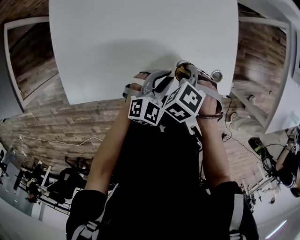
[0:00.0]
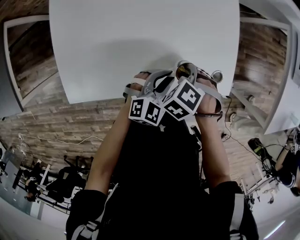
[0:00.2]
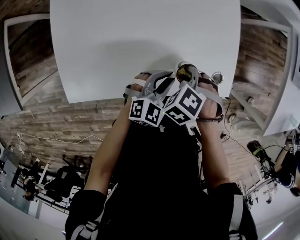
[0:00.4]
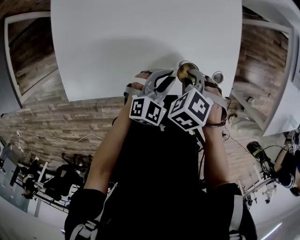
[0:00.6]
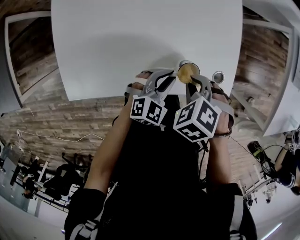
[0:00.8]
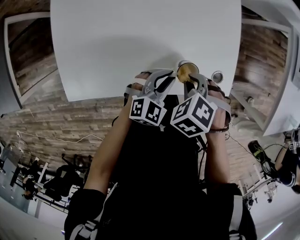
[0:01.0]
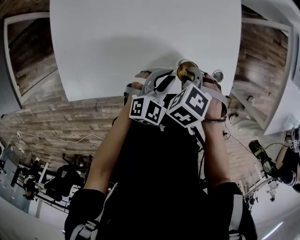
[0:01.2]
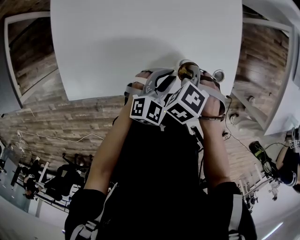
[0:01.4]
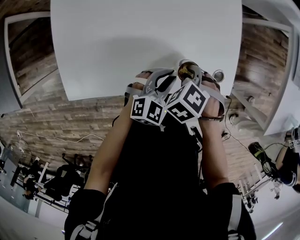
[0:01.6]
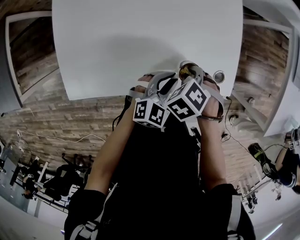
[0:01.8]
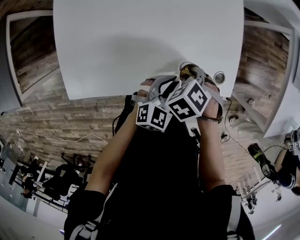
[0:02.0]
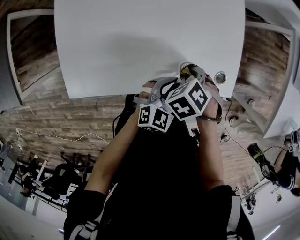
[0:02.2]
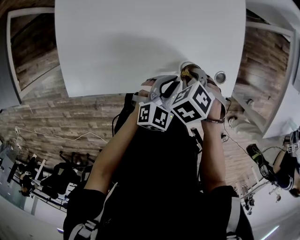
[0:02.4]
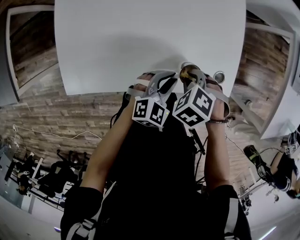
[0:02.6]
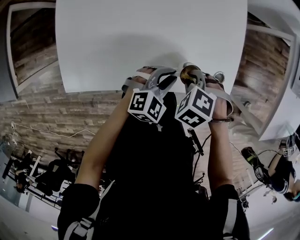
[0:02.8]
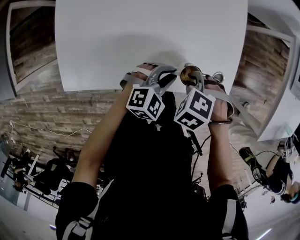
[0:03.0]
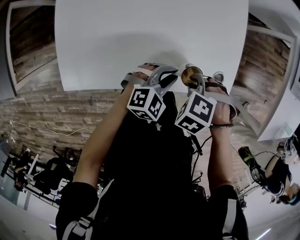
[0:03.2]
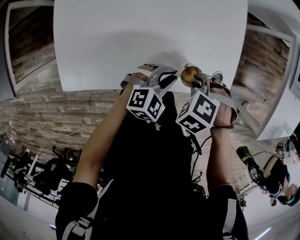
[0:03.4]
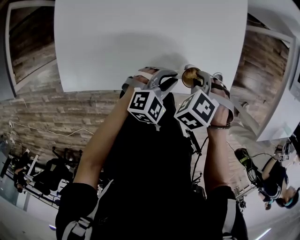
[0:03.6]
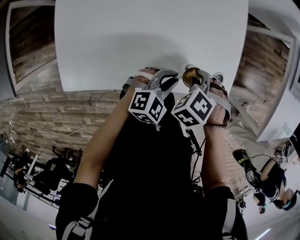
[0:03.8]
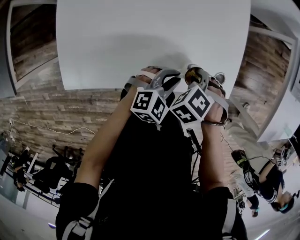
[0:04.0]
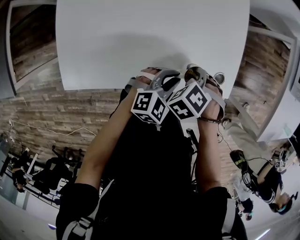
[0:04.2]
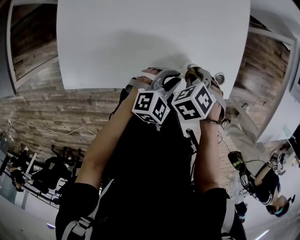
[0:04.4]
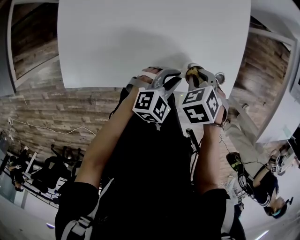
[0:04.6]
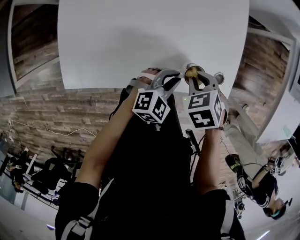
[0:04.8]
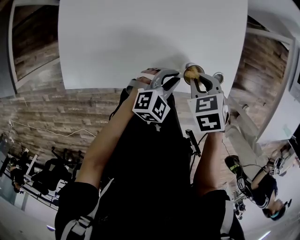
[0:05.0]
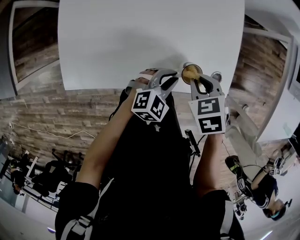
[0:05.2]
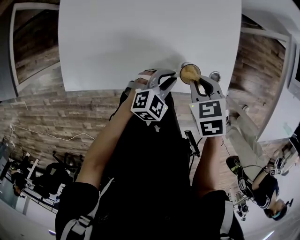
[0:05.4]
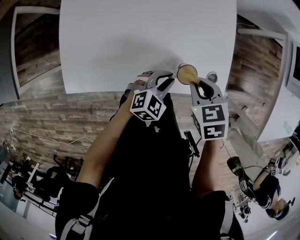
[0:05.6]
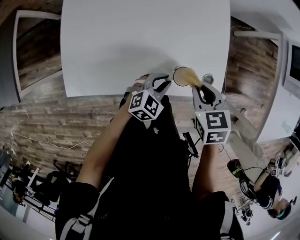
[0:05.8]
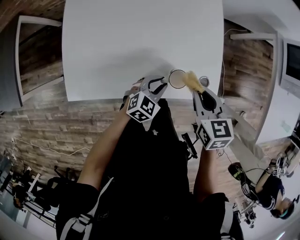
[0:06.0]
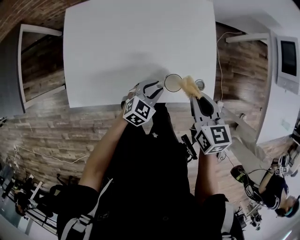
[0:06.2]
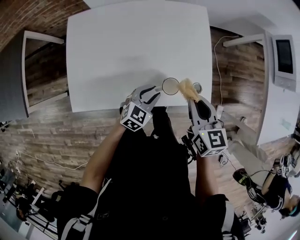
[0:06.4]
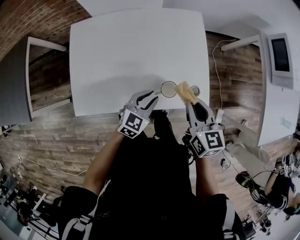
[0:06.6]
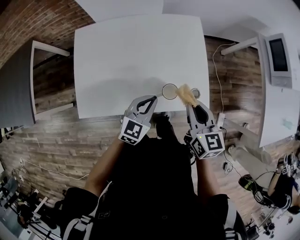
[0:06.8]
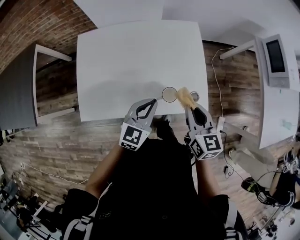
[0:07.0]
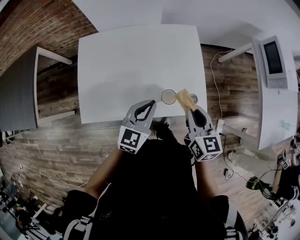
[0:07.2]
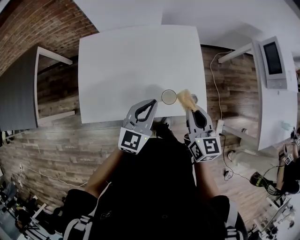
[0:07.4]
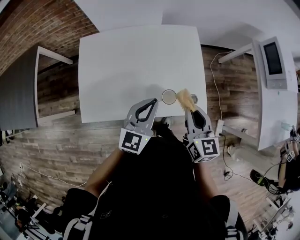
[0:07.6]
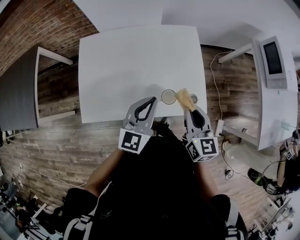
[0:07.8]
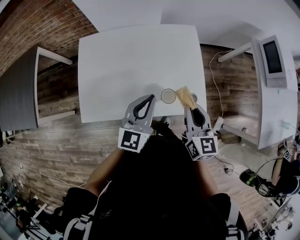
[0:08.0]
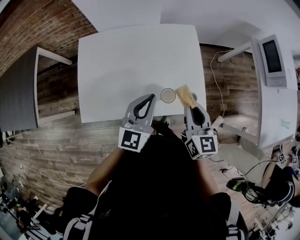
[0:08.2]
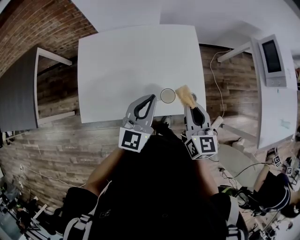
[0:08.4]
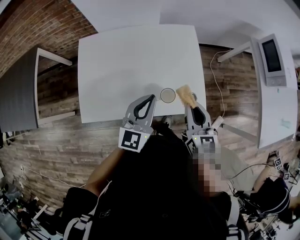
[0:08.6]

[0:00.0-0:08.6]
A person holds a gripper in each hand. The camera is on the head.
0:00.0 to 0:02.8: There are only small adjustments of the grippers.
0:02.8 to 0:04.4: The right gripper turns by some 20 degrees.
0:04.4 to 0:05.8: The right gripper travels upward by some 10 cm, and swivels approximately 40 degrees.
0:05.8 to 0:07.2: The left gripper travels upward by some 20 cm, and turns by some 30 degrees. Meanwhile the right gripper goes about 10 cm upward, and angles its fingers upward, by roughly 30 degrees.
0:07.2 to 0:08.6: The left gripper shifts by approximately 5 cm.

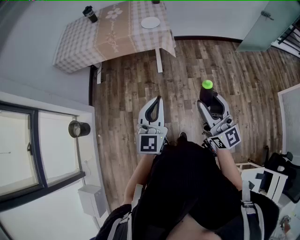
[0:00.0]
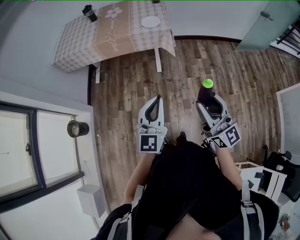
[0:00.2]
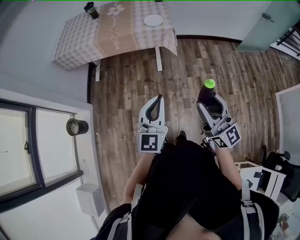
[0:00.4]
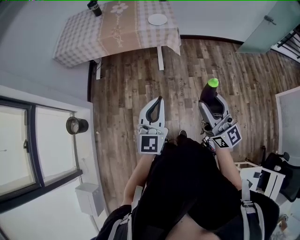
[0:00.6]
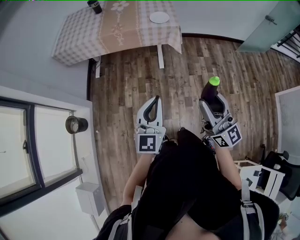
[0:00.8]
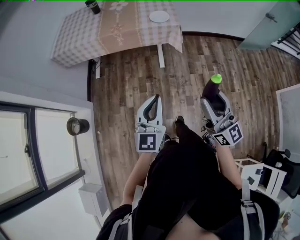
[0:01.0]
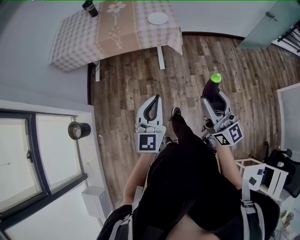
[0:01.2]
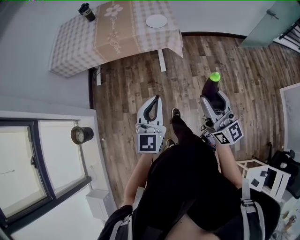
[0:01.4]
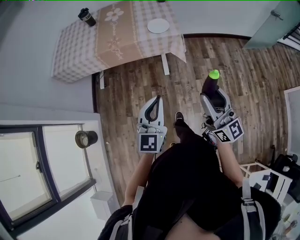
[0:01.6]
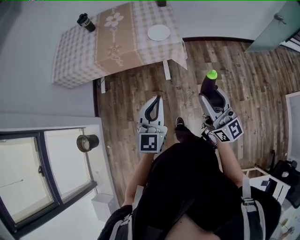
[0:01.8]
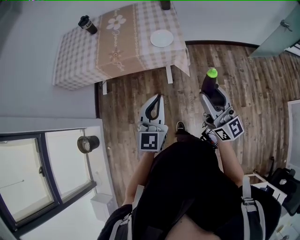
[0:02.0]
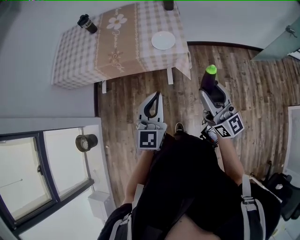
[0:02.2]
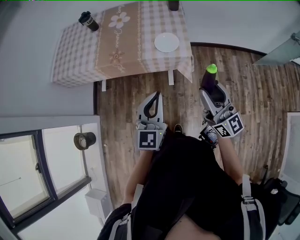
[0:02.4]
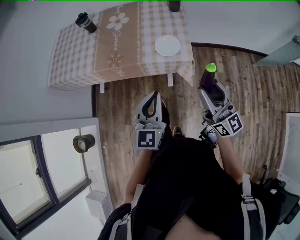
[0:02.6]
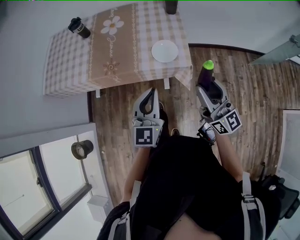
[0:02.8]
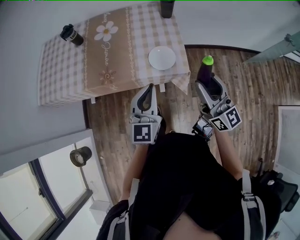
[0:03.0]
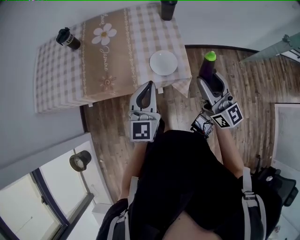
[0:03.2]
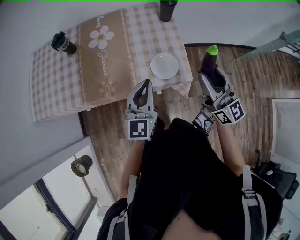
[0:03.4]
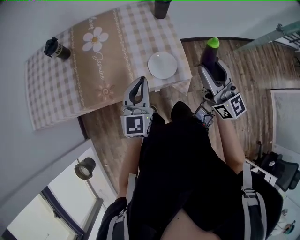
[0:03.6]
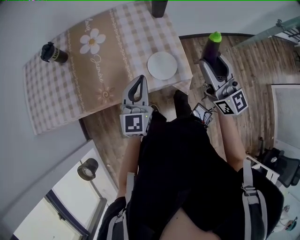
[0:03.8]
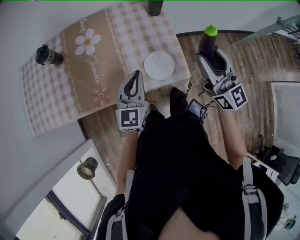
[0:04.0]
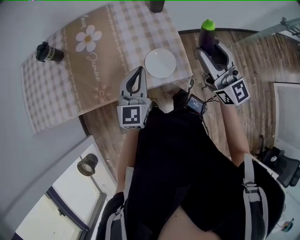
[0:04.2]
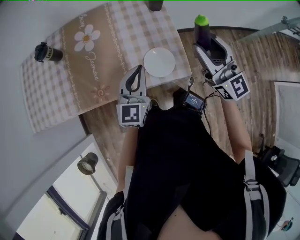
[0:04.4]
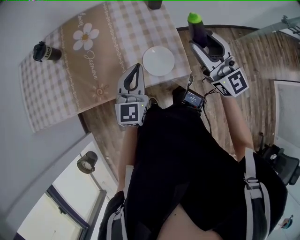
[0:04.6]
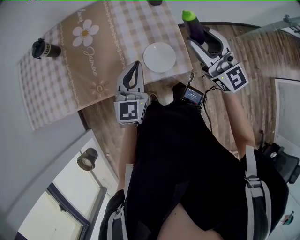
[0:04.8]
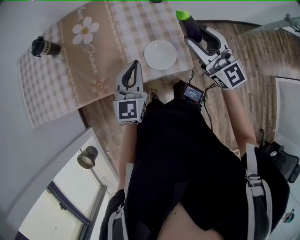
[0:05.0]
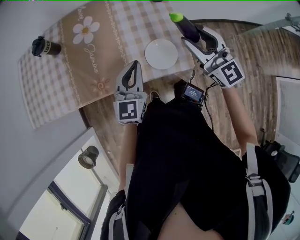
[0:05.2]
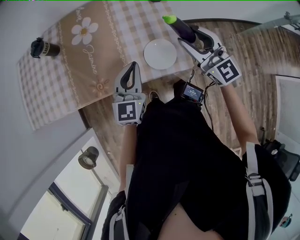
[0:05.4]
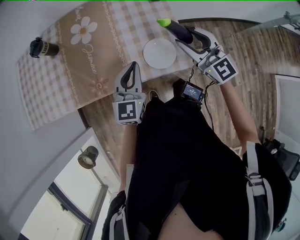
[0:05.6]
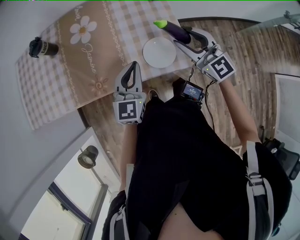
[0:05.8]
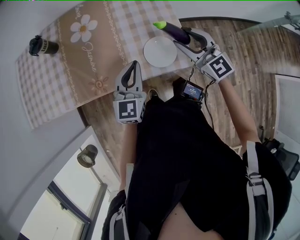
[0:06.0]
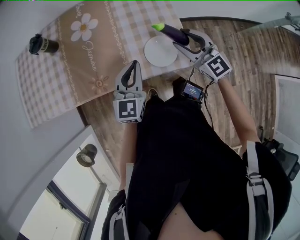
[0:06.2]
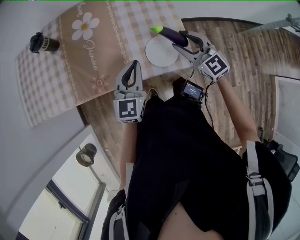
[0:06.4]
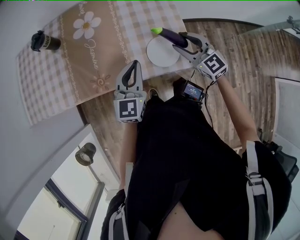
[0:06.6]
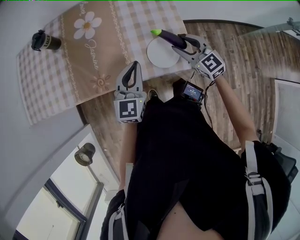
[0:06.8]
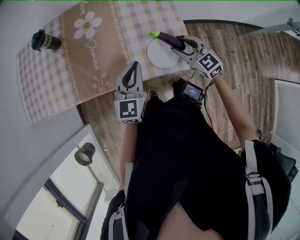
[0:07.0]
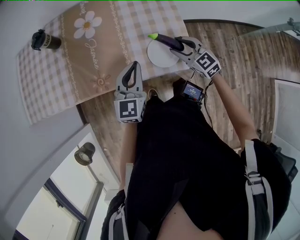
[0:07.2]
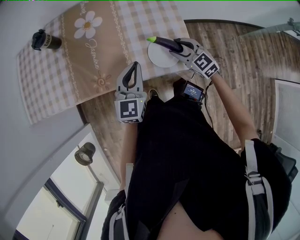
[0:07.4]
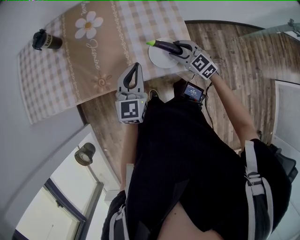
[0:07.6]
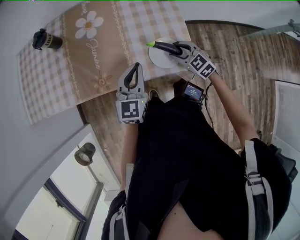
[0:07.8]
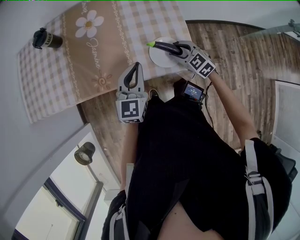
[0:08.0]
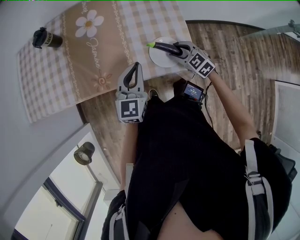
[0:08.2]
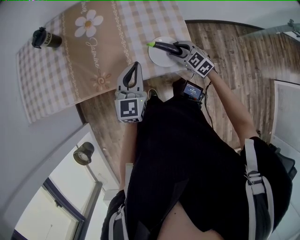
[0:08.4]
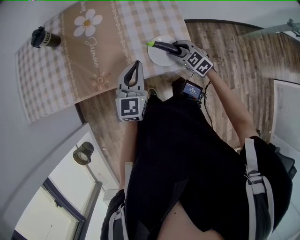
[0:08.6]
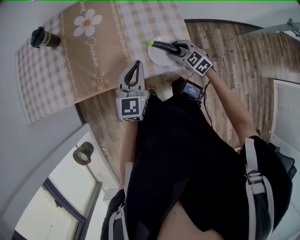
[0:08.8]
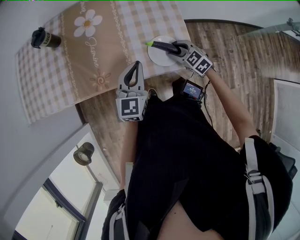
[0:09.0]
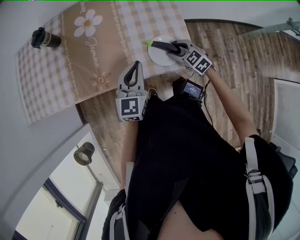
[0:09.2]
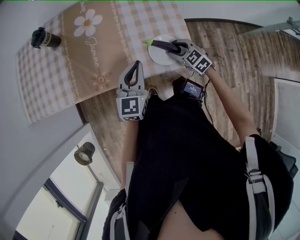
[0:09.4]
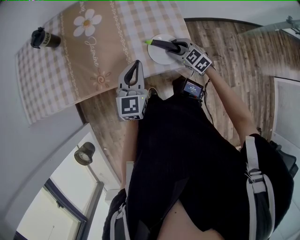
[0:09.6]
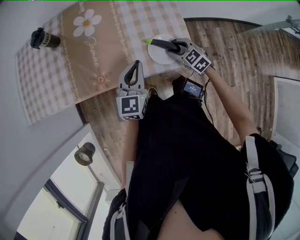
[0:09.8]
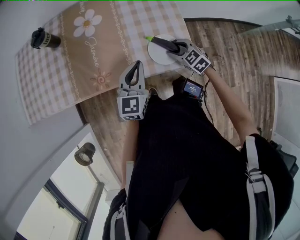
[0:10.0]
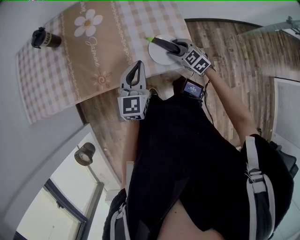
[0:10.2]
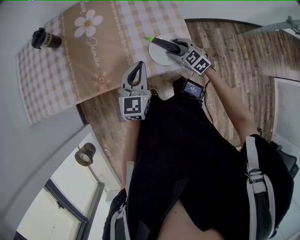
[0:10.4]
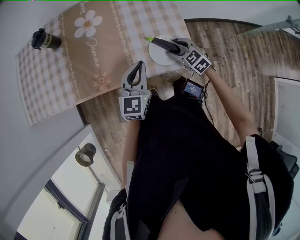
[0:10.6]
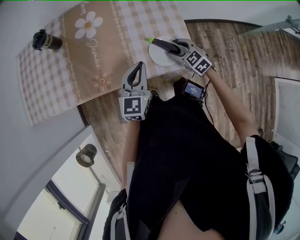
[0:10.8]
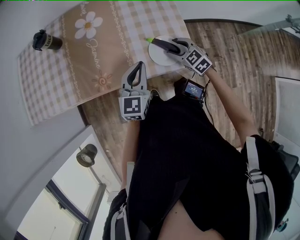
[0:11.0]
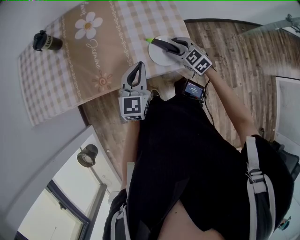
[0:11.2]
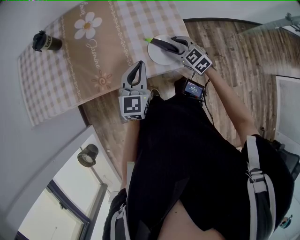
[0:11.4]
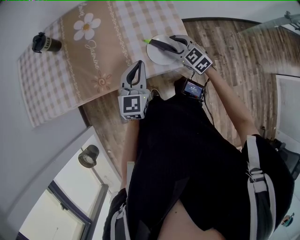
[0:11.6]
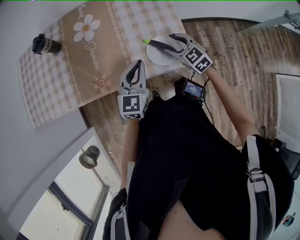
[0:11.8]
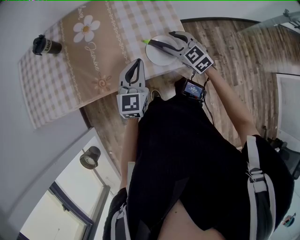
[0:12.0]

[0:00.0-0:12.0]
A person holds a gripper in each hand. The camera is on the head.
0:00.0 to 0:01.6: The grippers both shift forward by approximately 20 cm.
0:01.6 to 0:03.0: Both grippers travel together forward, about 40 cm.
0:03.0 to 0:04.4: Both grippers travel together forward, about 20 cm.
0:04.4 to 0:06.0: The right gripper heads downward, covering about 10 cm, and swivels approximately 20 degrees.
0:06.0 to 0:07.6: The right gripper moves downward, approximately 15 cm, and rotates roughly 30 degrees.
0:07.6 to 0:09.0: The grippers move only a little.
0:09.0 to 0:10.4: Both grippers stay put.
0:10.4 to 0:12.0: The right gripper shifts some 10 cm upward.

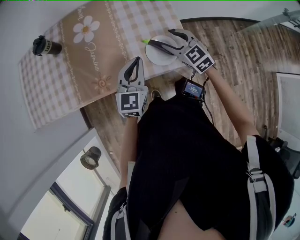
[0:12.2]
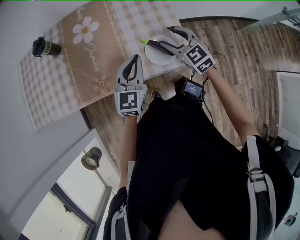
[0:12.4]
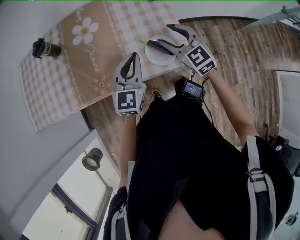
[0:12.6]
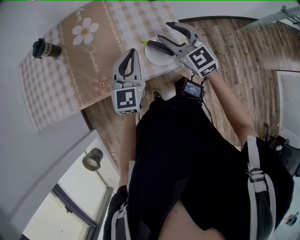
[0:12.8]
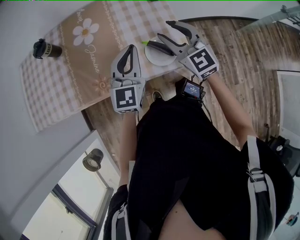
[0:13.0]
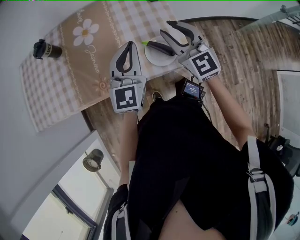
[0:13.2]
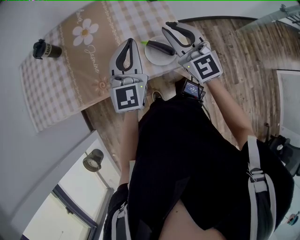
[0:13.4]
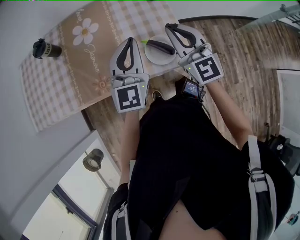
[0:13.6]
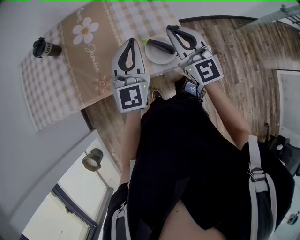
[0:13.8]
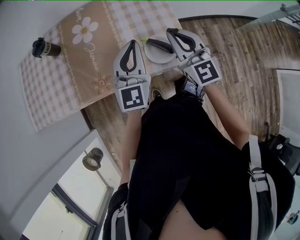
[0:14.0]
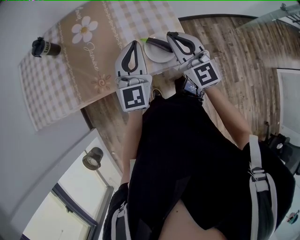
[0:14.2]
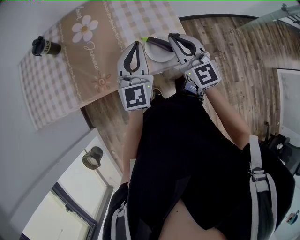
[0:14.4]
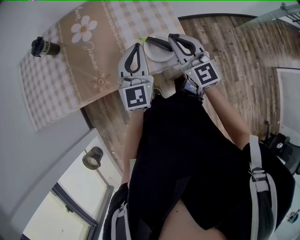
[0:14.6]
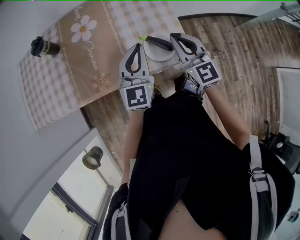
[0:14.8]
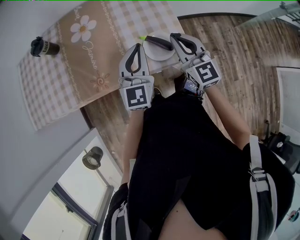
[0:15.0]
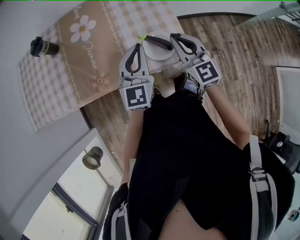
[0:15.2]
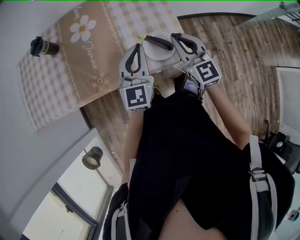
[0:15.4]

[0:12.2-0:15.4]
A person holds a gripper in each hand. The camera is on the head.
0:12.2 to 0:13.8: The grippers both shift upward by some 15 cm. The right gripper turns by approximately 30 degrees, and closes its fingers.
0:13.8 to 0:15.4: The grippers both shift downward by some 5 cm.
